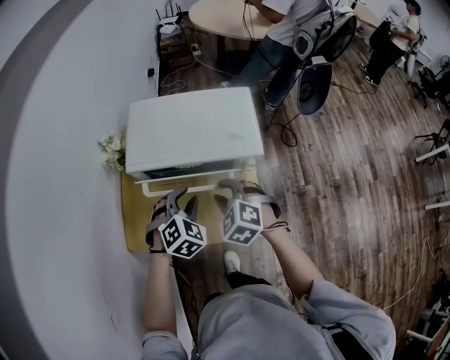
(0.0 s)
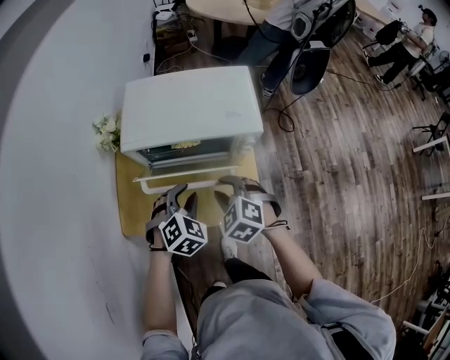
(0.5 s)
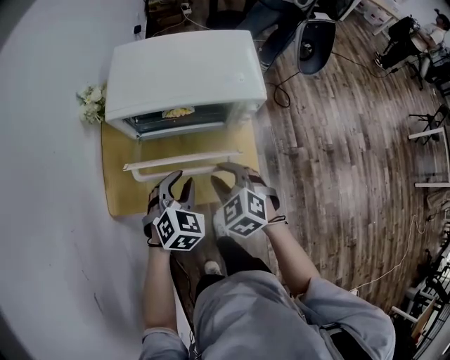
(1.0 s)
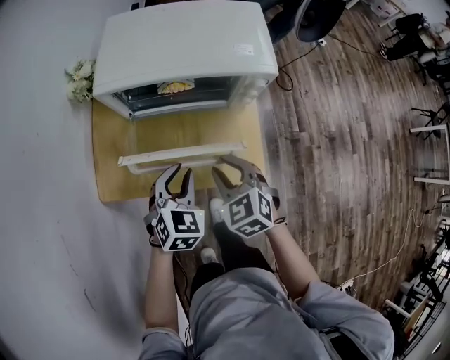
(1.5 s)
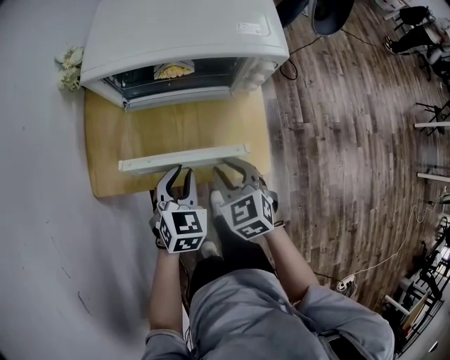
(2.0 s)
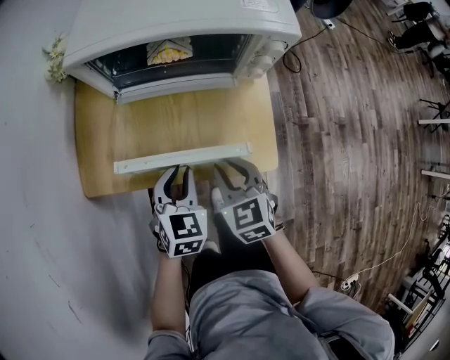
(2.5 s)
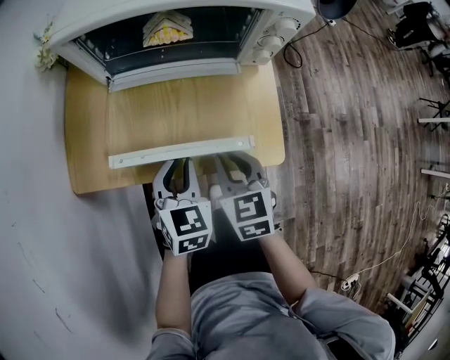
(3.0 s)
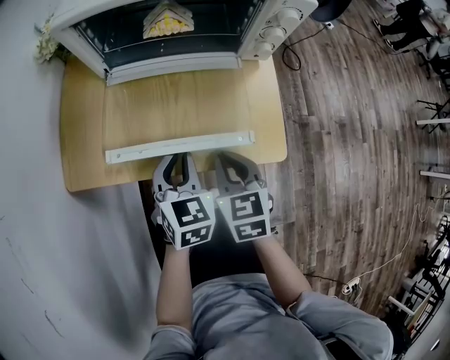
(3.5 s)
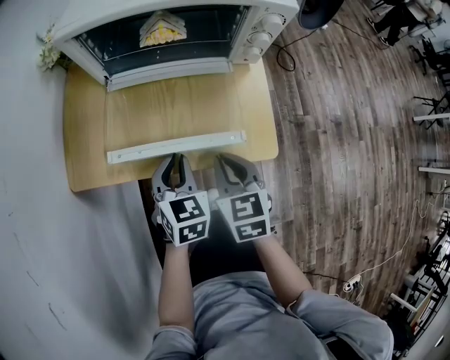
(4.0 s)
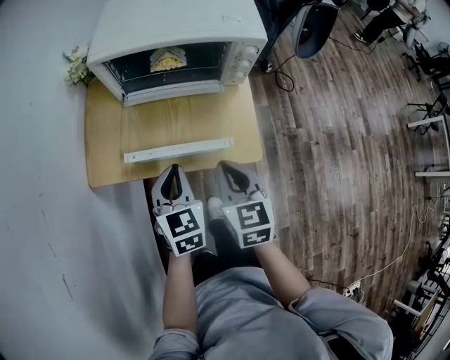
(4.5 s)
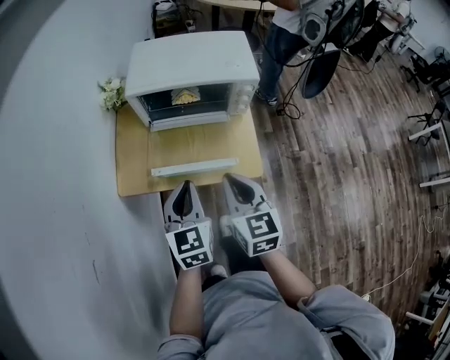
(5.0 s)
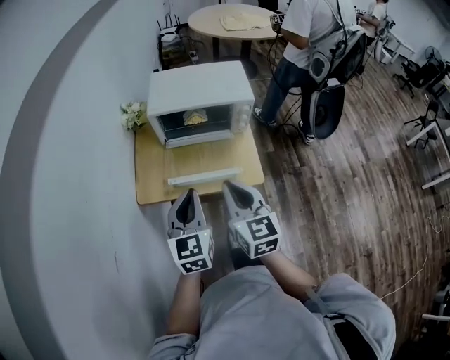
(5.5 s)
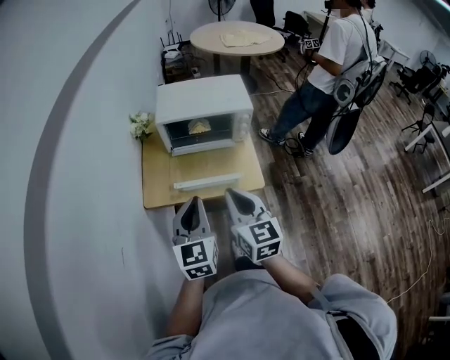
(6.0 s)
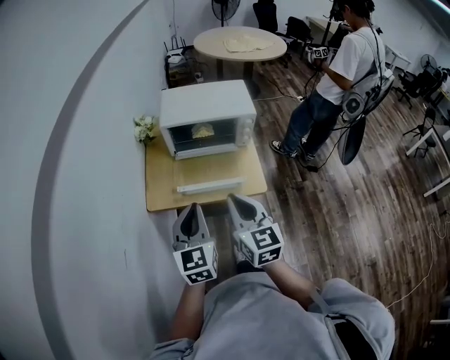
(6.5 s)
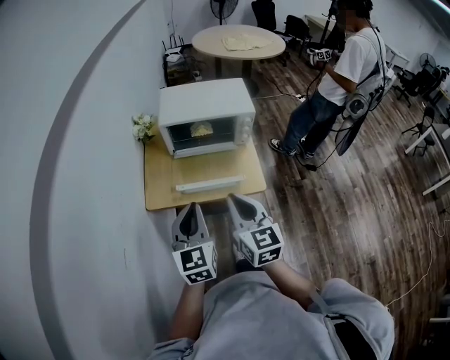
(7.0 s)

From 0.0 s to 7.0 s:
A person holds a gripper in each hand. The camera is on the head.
From 0.0 s to 2.0 s: The grippers both shift downward and backward by some 15 cm. The left gripper turns by approximately 30 degrees. The right gripper changes its angle by about 30 degrees.
From 2.0 s to 3.5 s: The grippers both shift downward by roughly 10 cm.
From 3.5 s to 5.0 s: Both grippers move upward, some 25 cm.
From 5.0 s to 7.0 s: The right gripper shifts roughly 15 cm upward and backward, while the left gripper travels upward, backward and to the left by approximately 15 cm.

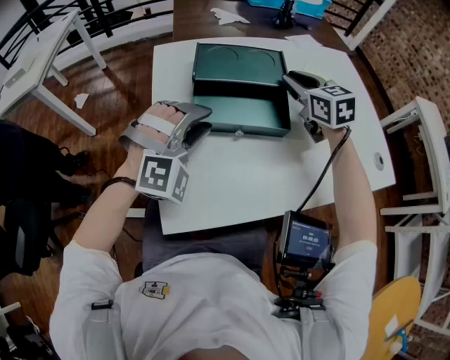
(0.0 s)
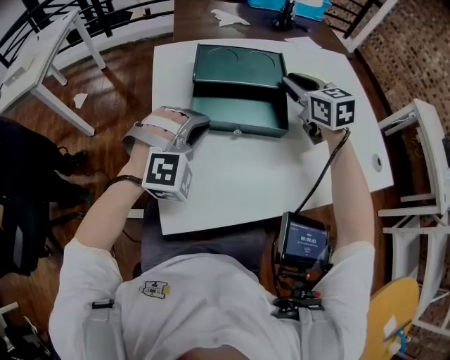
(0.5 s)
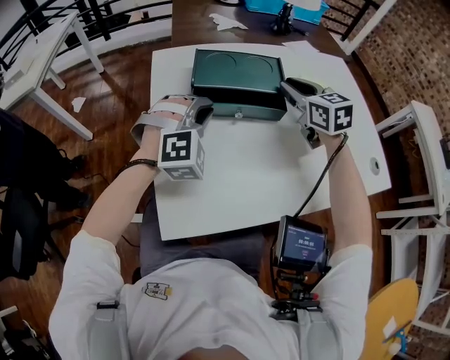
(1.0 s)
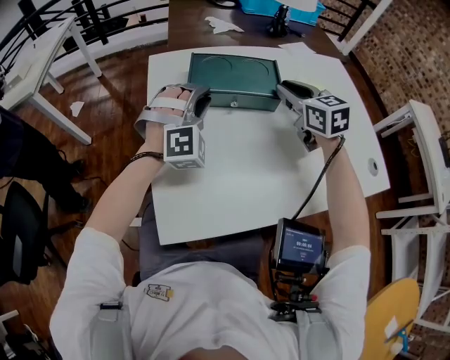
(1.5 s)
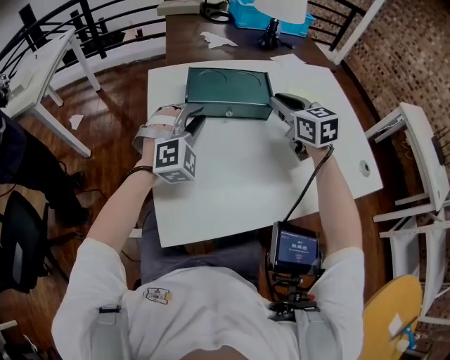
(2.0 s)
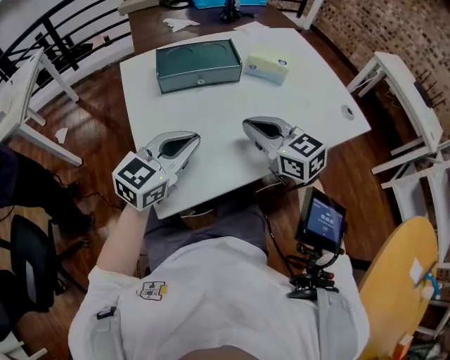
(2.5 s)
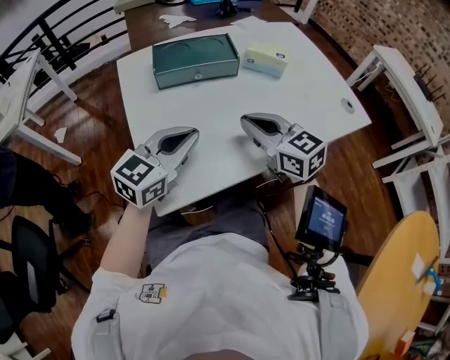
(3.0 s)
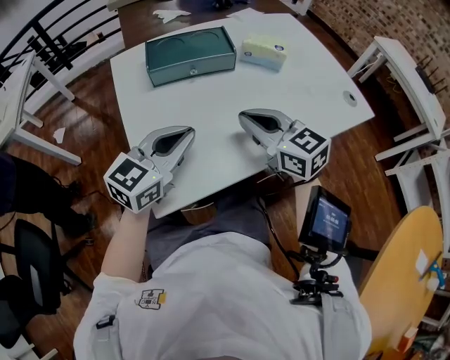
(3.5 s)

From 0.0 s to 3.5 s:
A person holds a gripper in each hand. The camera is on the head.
From 0.0 s to 2.0 s: The left gripper travels forward by some 10 cm.
From 2.0 s to 3.5 s: Both grippers travel together backward, about 20 cm. The left gripper rotates around the line of its fingers by about 60 degrees, counterclockwise from behind.

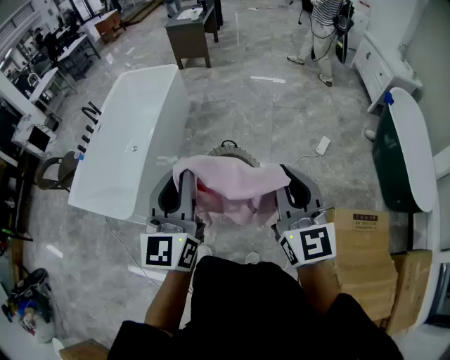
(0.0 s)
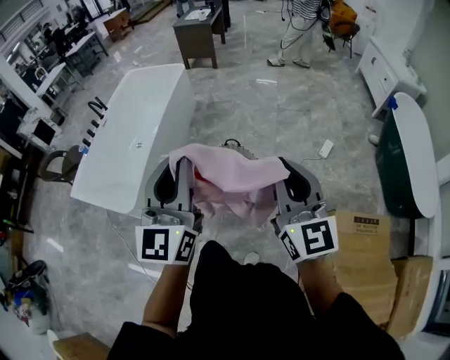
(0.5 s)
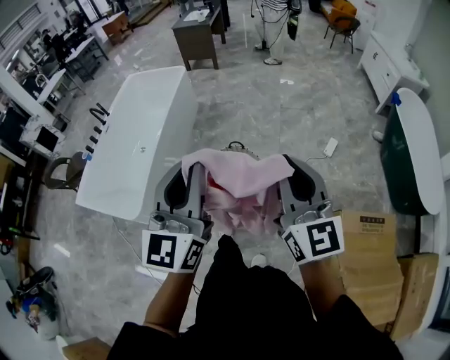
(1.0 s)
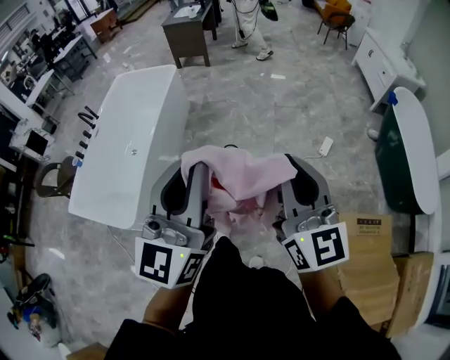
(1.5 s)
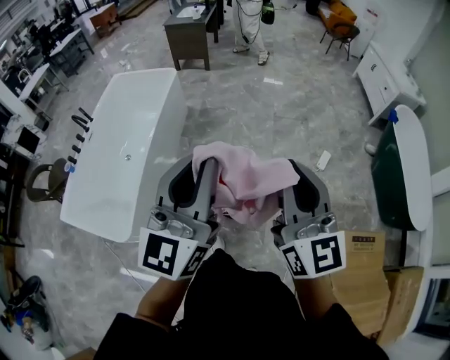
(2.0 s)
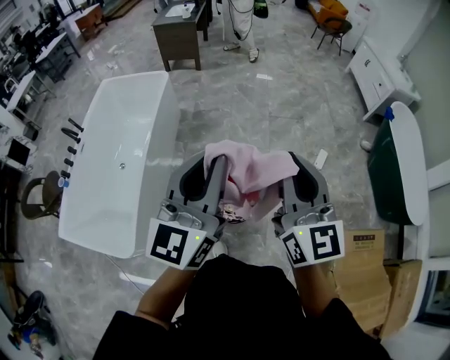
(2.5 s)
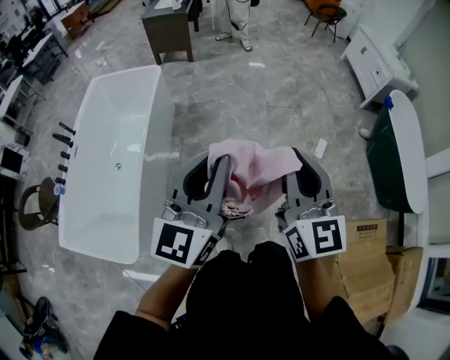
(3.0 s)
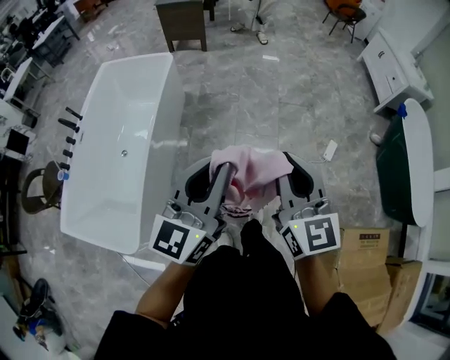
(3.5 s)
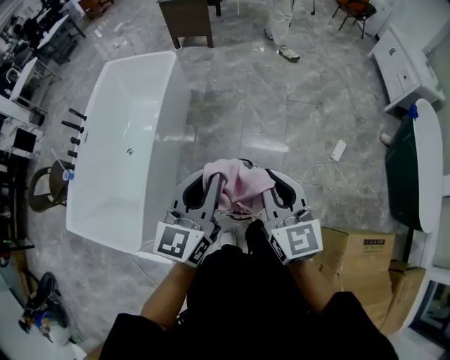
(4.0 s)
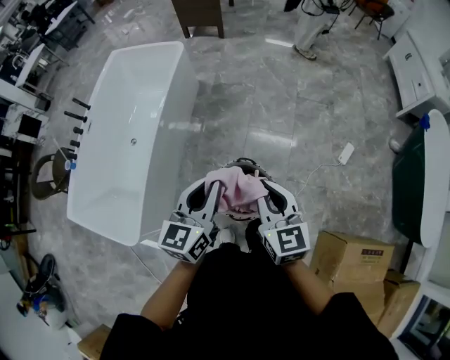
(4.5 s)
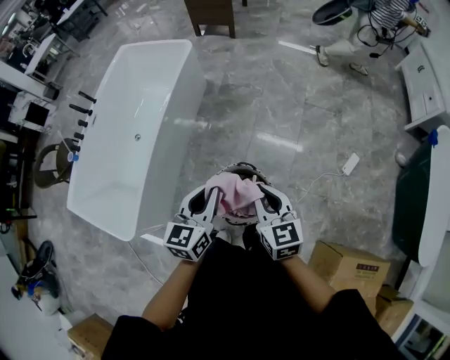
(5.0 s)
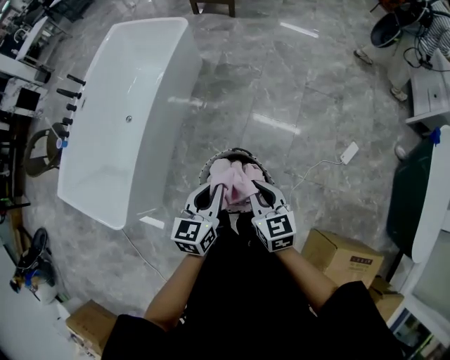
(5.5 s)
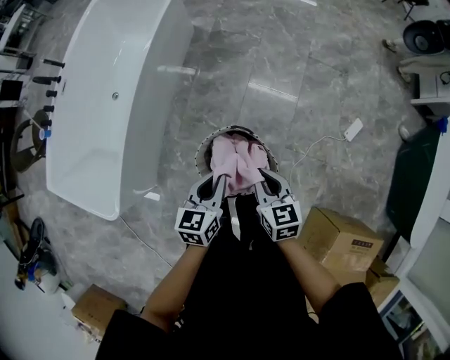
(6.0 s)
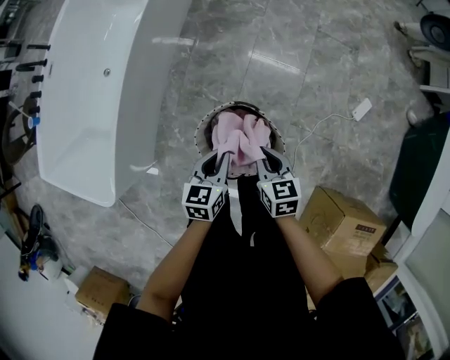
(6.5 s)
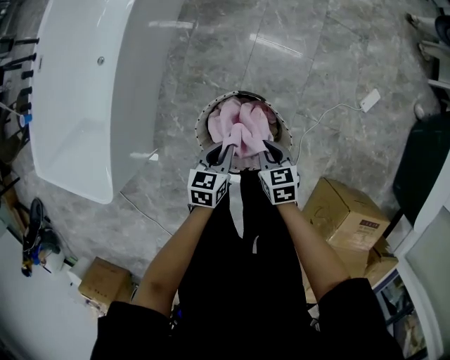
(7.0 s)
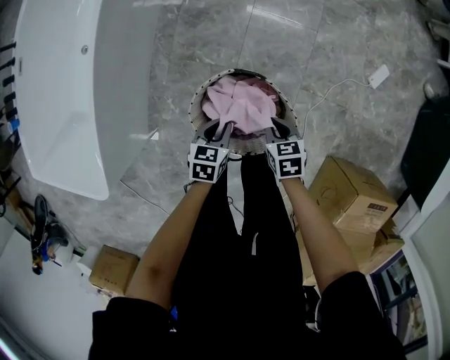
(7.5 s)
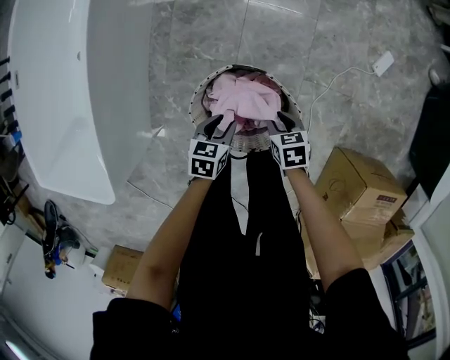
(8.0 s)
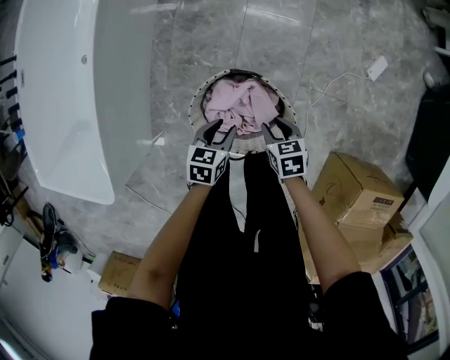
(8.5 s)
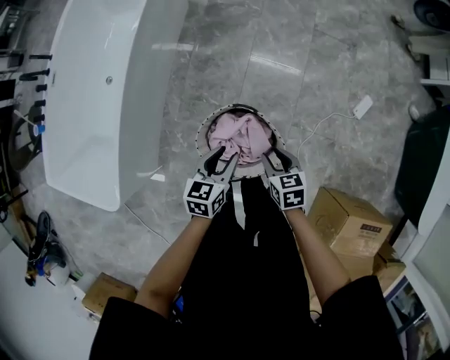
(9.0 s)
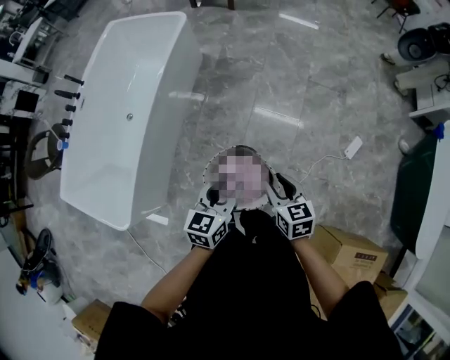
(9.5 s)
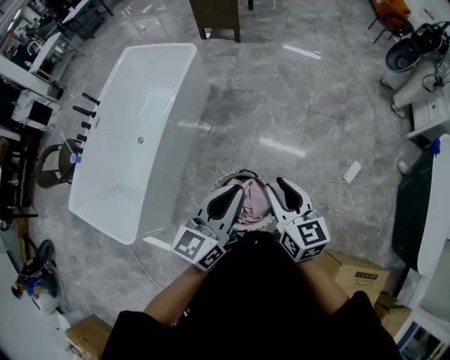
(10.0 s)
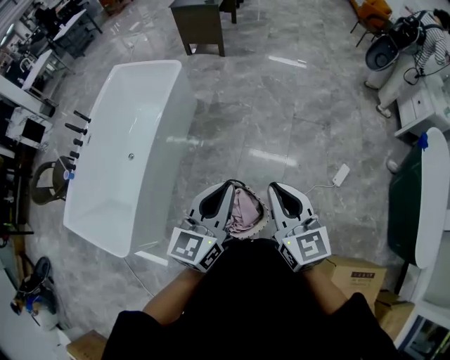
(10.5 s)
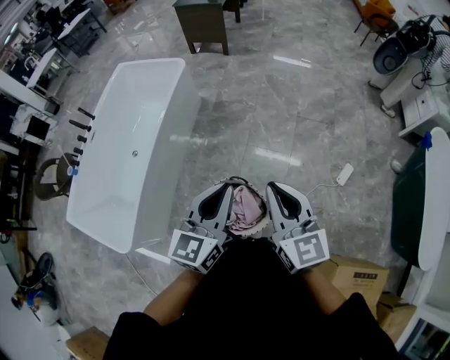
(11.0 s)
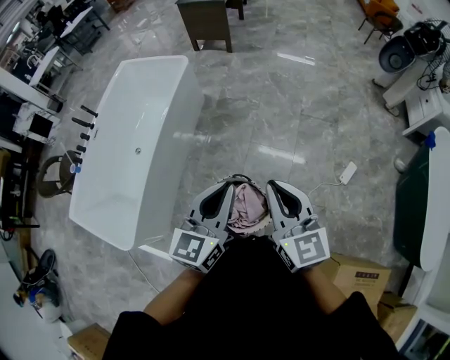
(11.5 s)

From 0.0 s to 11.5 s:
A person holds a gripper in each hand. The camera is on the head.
From 0.0 s to 2.0 s: Both grippers move forward, some 20 cm.
From 2.0 s to 4.0 s: The right gripper goes approximately 30 cm forward, downward and to the left, and swivels roughly 20 degrees; the left gripper heads forward and downward, covering about 30 cm, and turns by approximately 20 degrees.
From 4.0 s to 6.0 s: The grippers both shift downward by approximately 35 cm. The right gripper changes its angle by approximately 30 degrees, while the left gripper angles its fingers downward, by about 30 degrees.
From 6.0 s to 7.5 s: Both grippers move downward, roughly 30 cm. The right gripper turns by roughly 30 degrees, while the left gripper swivels about 30 degrees.
From 7.5 s to 9.5 s: Both grippers move upward, approximately 40 cm. The right gripper turns by approximately 30 degrees, and opens. The left gripper turns by about 30 degrees, and opens.
From 9.5 s to 11.5 s: The two grippers go some 25 cm upward. The right gripper changes its angle by approximately 30 degrees, and closes up, while the left gripper swivels about 20 degrees, and closes.

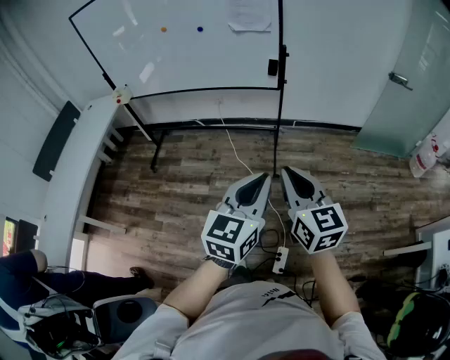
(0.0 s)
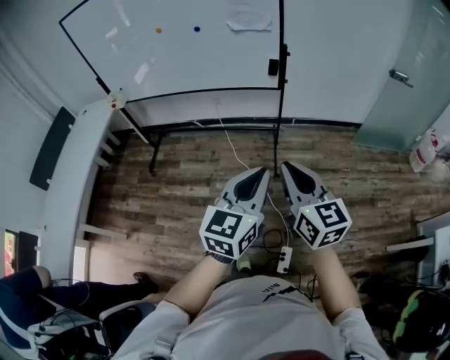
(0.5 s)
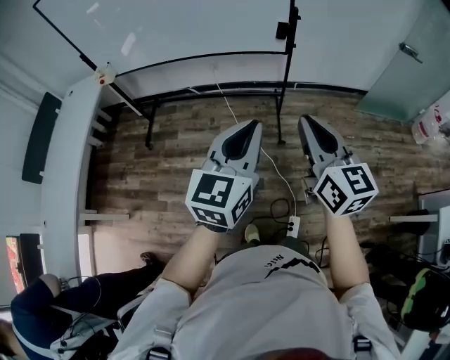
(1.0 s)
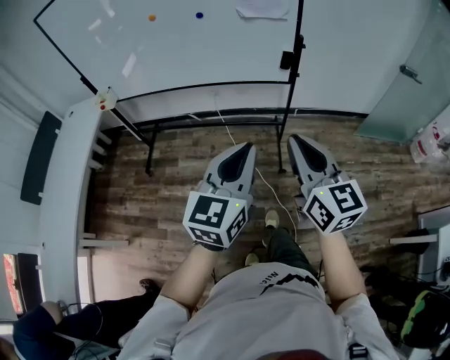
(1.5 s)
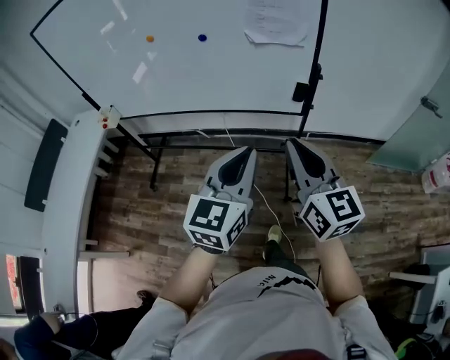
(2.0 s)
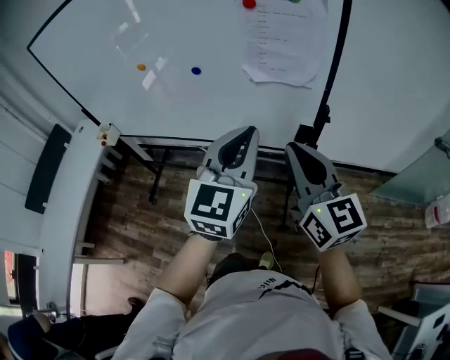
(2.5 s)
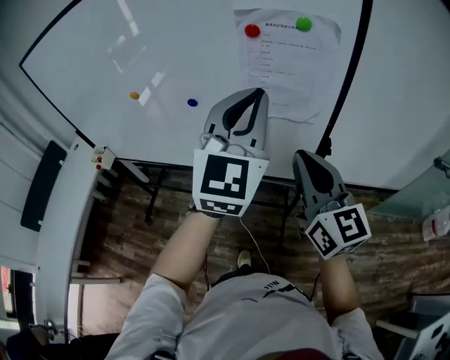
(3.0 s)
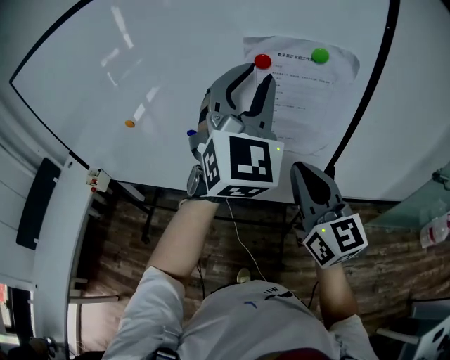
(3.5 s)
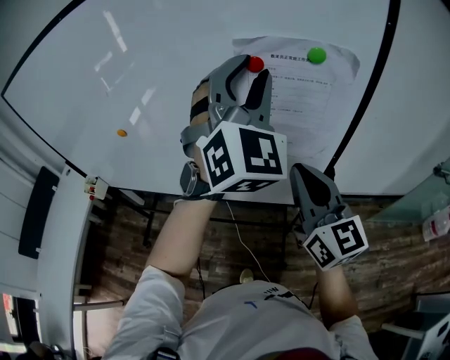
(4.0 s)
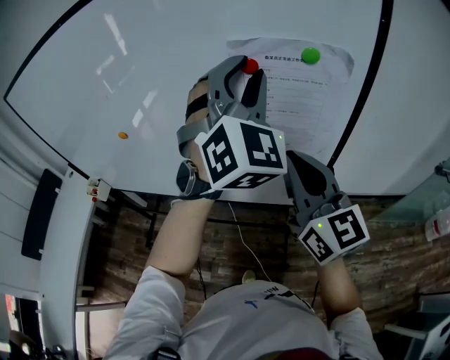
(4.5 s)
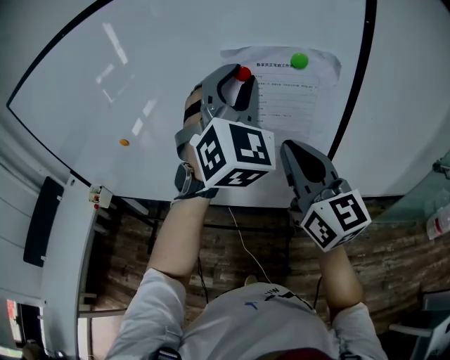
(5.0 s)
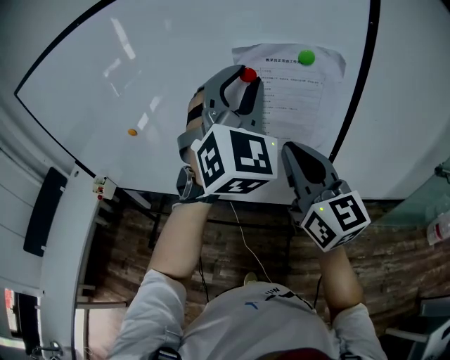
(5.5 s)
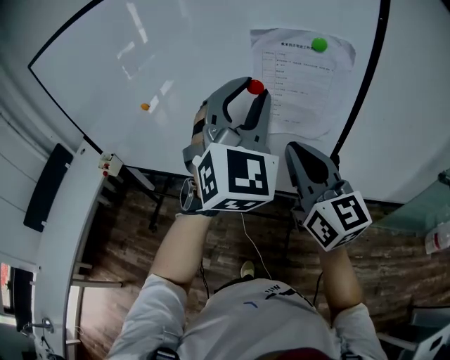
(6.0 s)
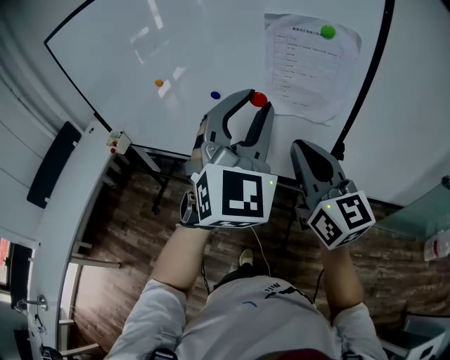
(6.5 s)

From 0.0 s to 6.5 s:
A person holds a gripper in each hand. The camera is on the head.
From 0.0 s to 2.0 s: The two grippers go roughly 35 cm forward.
From 2.0 s to 4.5 s: The left gripper moves forward and upward, approximately 50 cm, rolls clockwise, seen from behind, by roughly 50 degrees, and opens. Meanwhile the right gripper goes approximately 35 cm forward.
From 4.5 s to 6.5 s: The right gripper shifts roughly 10 cm backward, while the left gripper goes roughly 15 cm backward.
